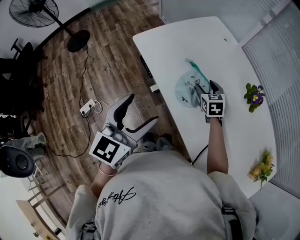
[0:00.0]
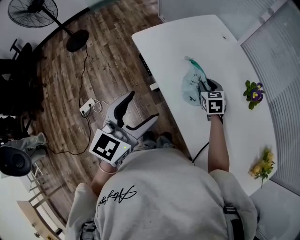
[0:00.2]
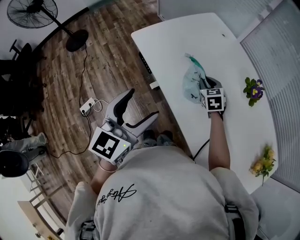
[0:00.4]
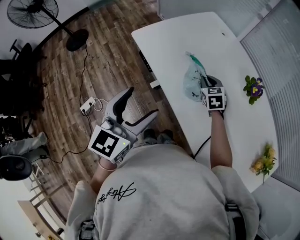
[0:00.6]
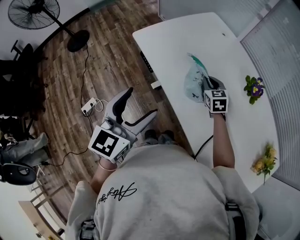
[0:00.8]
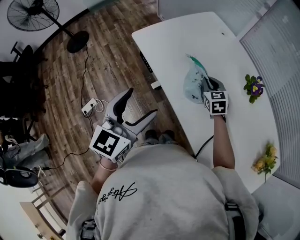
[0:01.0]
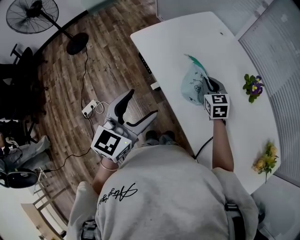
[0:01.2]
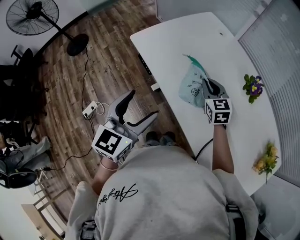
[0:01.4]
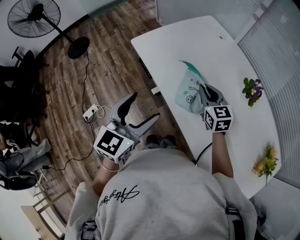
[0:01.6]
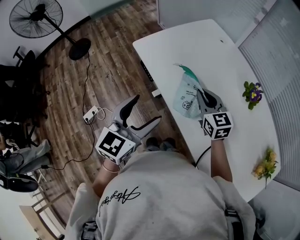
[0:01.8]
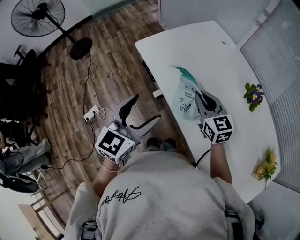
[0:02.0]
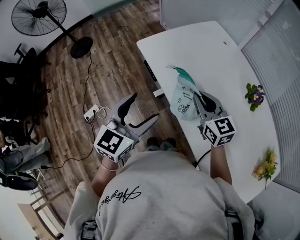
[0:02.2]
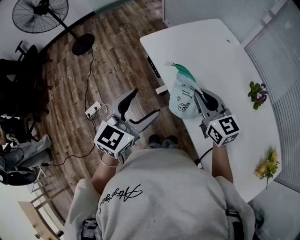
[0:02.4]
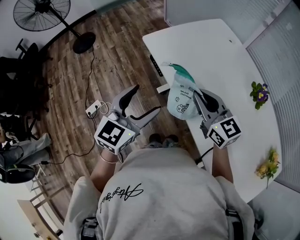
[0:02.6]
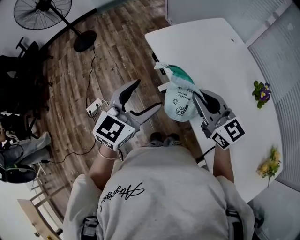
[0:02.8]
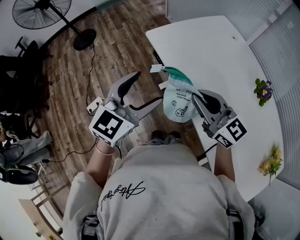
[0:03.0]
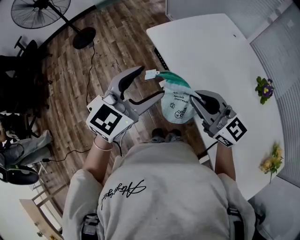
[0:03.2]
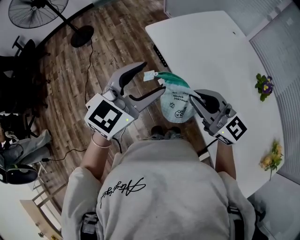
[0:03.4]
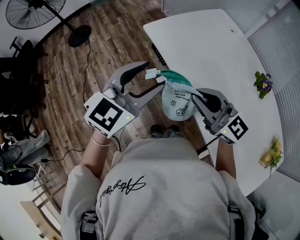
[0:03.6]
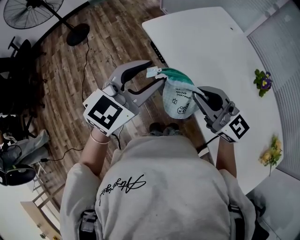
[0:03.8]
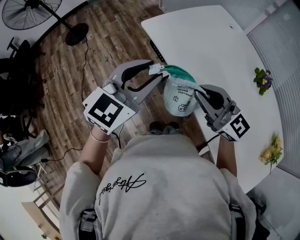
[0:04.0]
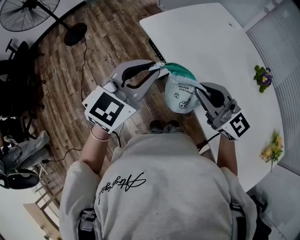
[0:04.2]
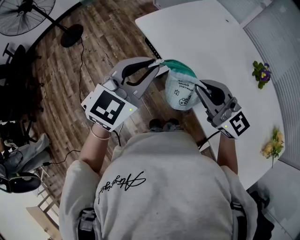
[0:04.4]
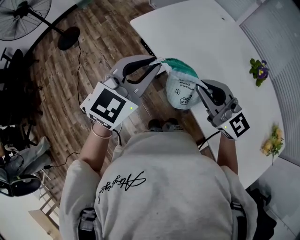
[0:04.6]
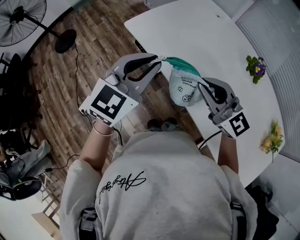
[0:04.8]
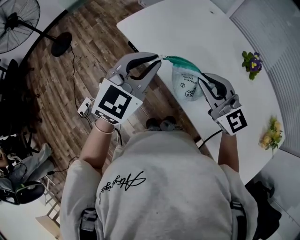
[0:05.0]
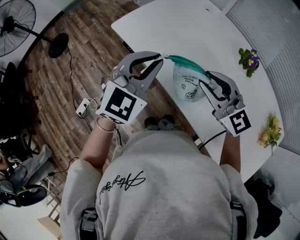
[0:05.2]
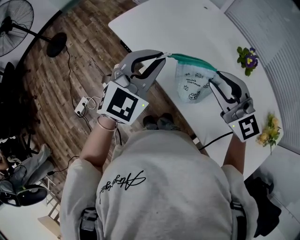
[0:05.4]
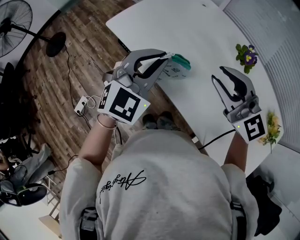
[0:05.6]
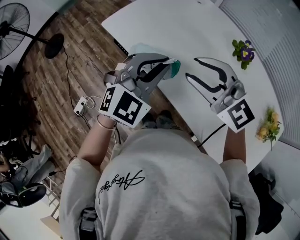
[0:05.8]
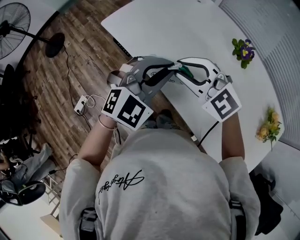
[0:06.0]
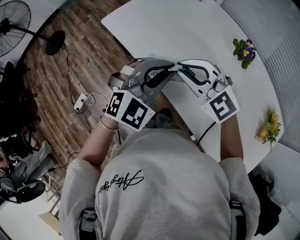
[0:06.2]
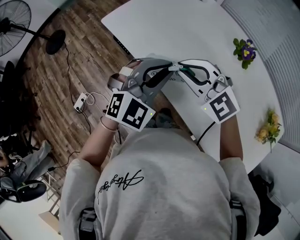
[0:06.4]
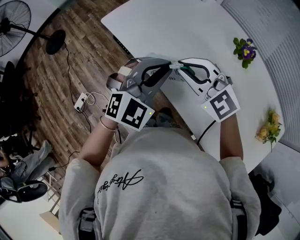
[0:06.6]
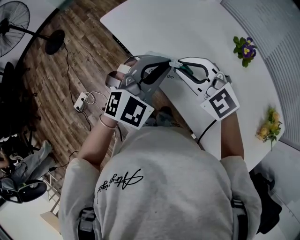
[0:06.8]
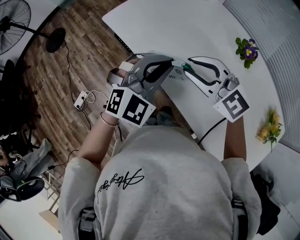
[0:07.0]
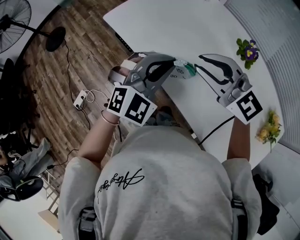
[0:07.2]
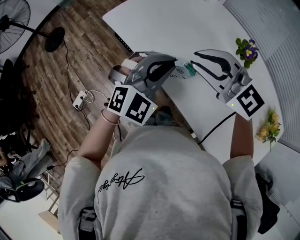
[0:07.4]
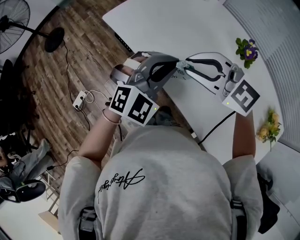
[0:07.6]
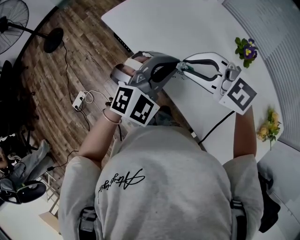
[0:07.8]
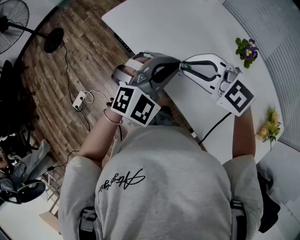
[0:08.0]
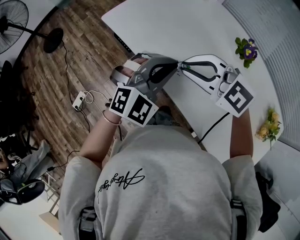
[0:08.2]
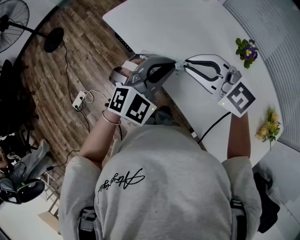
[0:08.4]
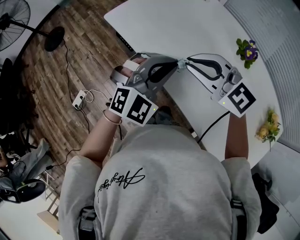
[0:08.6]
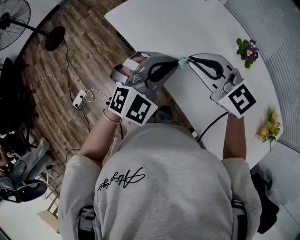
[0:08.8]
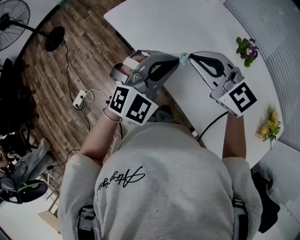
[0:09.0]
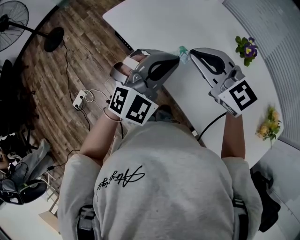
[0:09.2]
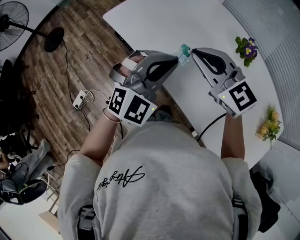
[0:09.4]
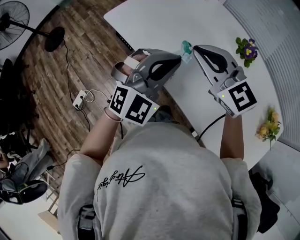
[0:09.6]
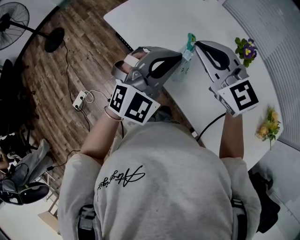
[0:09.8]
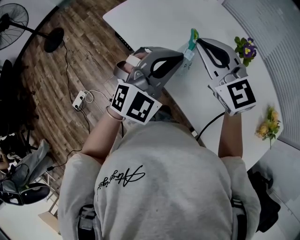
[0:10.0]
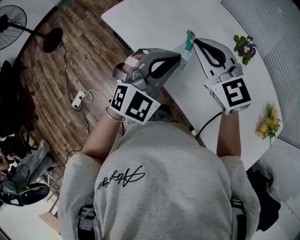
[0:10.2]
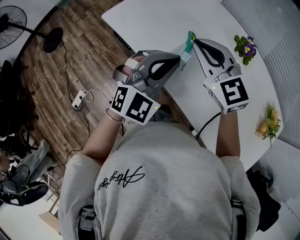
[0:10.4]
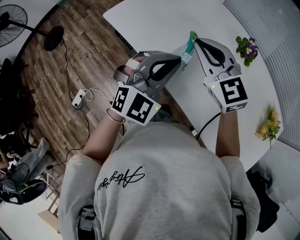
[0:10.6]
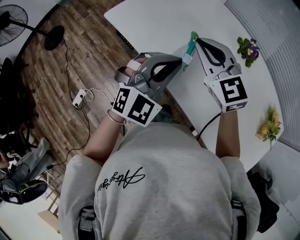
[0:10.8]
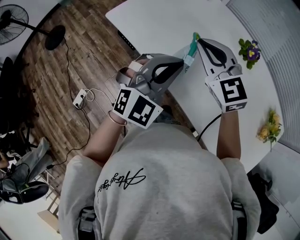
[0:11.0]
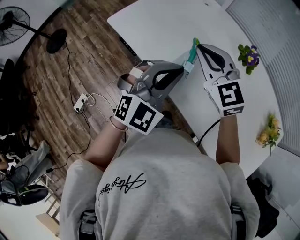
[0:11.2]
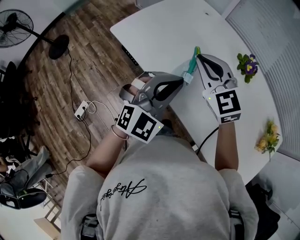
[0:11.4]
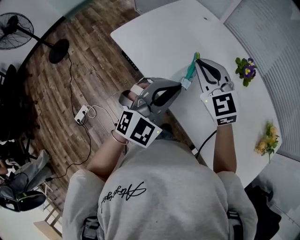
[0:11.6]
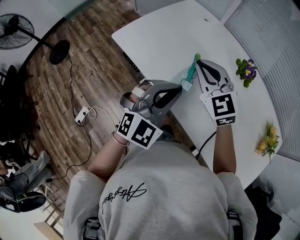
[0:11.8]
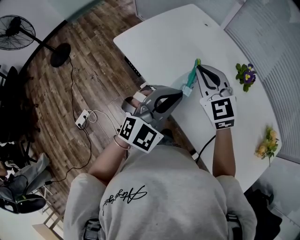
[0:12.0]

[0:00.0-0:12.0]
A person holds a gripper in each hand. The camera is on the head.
0.0 to 1.6 s: The right gripper heads upward and backward, covering roughly 10 cm, and closes up.
1.6 to 3.0 s: The right gripper shifts about 20 cm to the left, upward and backward, and turns by roughly 40 degrees. The left gripper moves to the left, roughly 5 cm.
3.0 to 4.4 s: The left gripper closes up.
4.4 to 6.0 s: The right gripper shifts some 5 cm to the right, and changes its angle by approximately 30 degrees, while the left gripper heads to the right, covering some 15 cm, and changes its angle by about 30 degrees.
6.0 to 9.0 s: The grippers make only small movements.
9.0 to 10.4 s: The right gripper rotates approximately 20 degrees.
10.4 to 12.0 s: The grippers make only small movements.

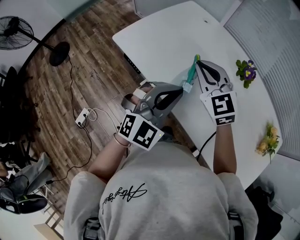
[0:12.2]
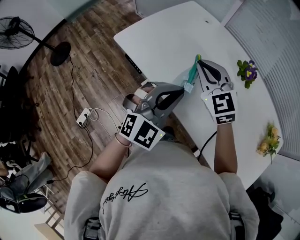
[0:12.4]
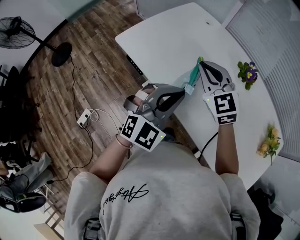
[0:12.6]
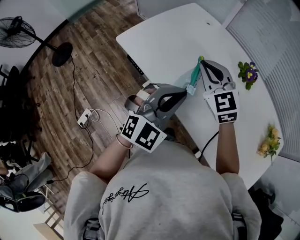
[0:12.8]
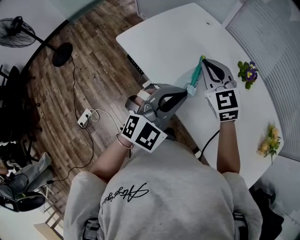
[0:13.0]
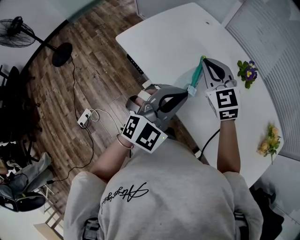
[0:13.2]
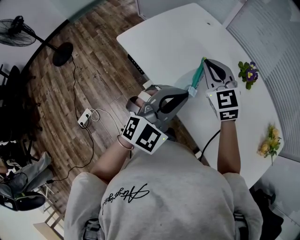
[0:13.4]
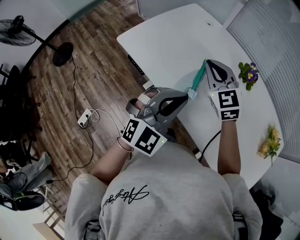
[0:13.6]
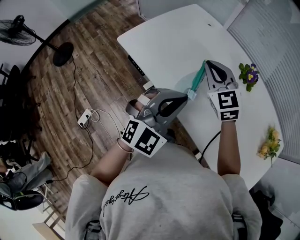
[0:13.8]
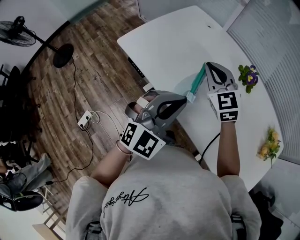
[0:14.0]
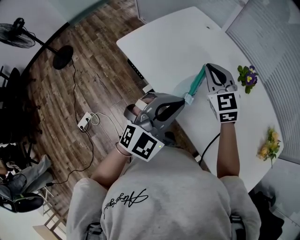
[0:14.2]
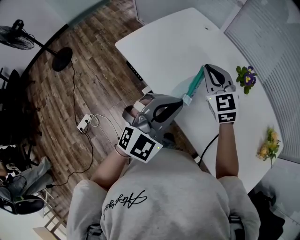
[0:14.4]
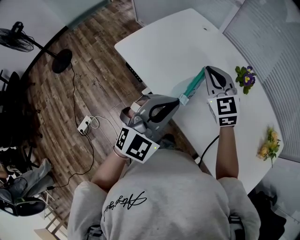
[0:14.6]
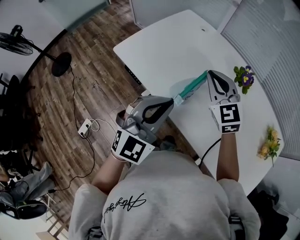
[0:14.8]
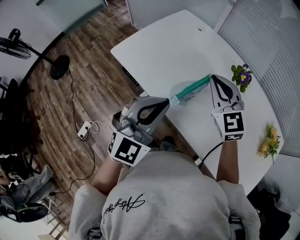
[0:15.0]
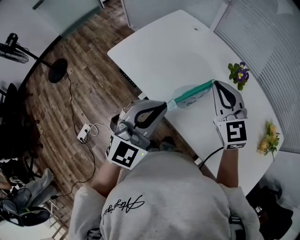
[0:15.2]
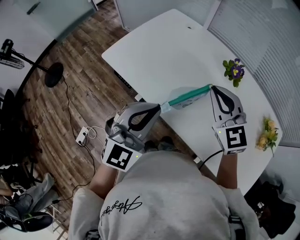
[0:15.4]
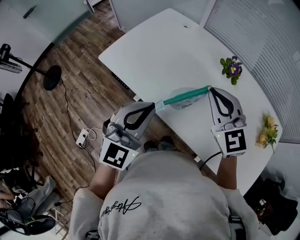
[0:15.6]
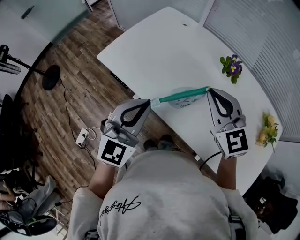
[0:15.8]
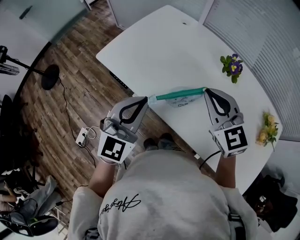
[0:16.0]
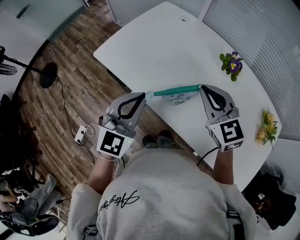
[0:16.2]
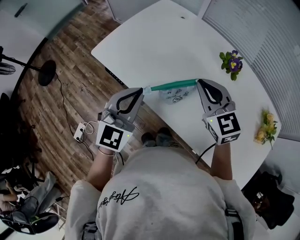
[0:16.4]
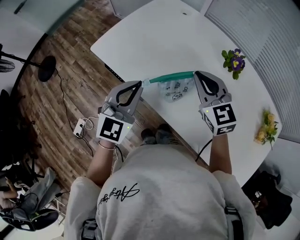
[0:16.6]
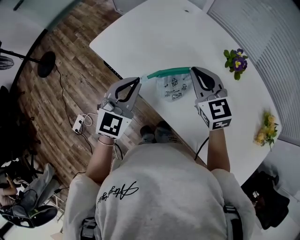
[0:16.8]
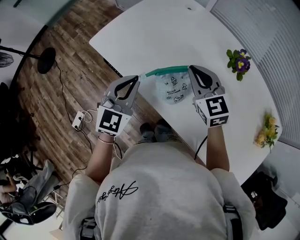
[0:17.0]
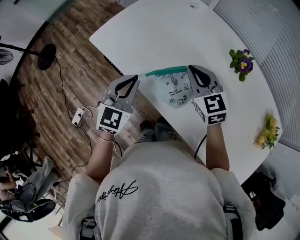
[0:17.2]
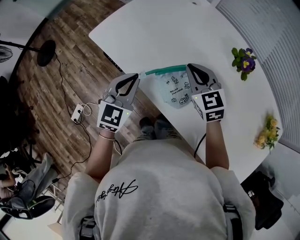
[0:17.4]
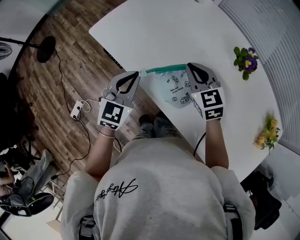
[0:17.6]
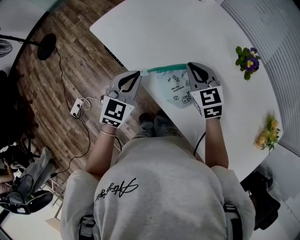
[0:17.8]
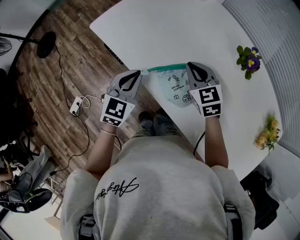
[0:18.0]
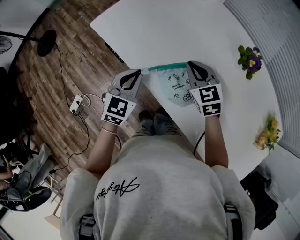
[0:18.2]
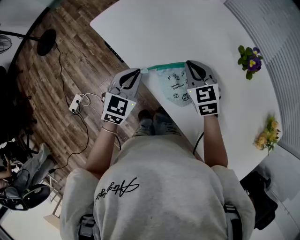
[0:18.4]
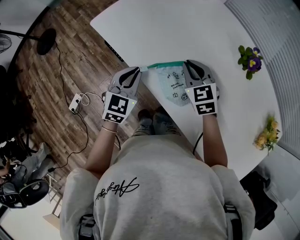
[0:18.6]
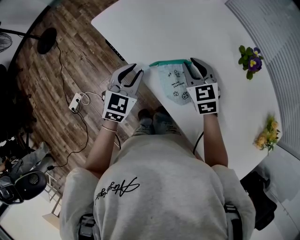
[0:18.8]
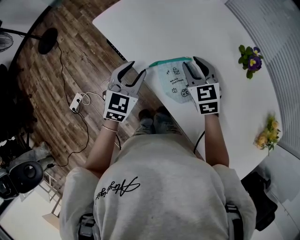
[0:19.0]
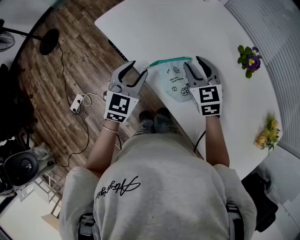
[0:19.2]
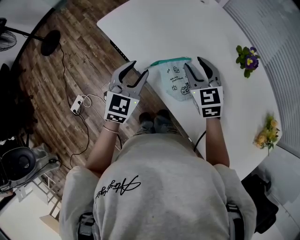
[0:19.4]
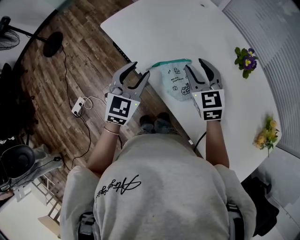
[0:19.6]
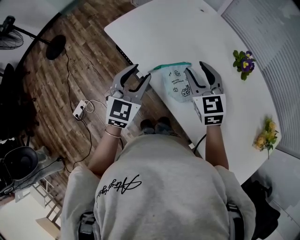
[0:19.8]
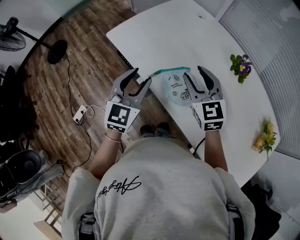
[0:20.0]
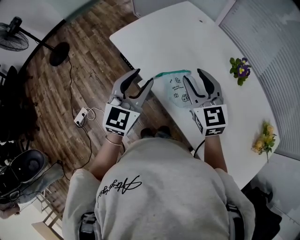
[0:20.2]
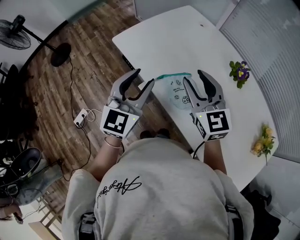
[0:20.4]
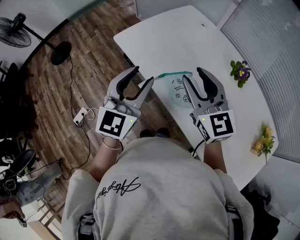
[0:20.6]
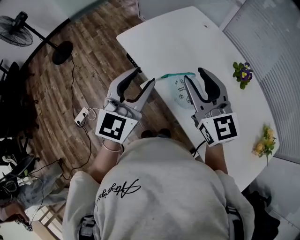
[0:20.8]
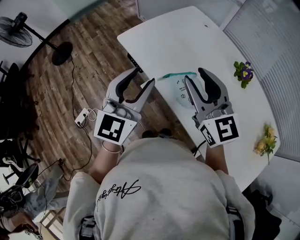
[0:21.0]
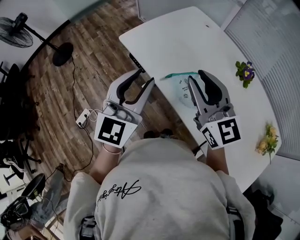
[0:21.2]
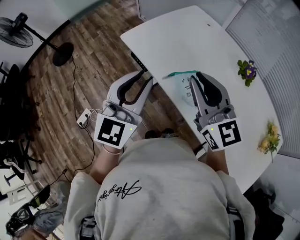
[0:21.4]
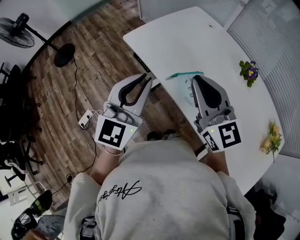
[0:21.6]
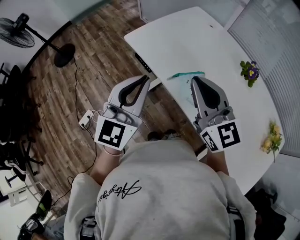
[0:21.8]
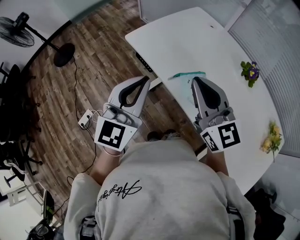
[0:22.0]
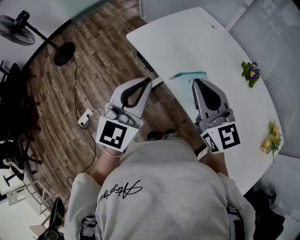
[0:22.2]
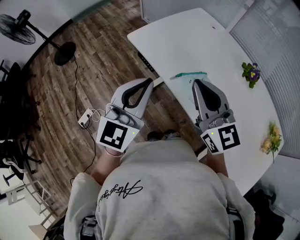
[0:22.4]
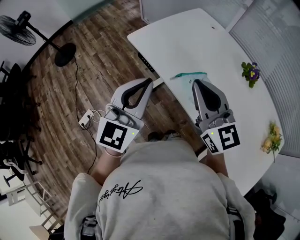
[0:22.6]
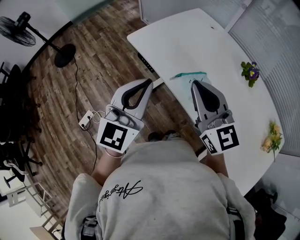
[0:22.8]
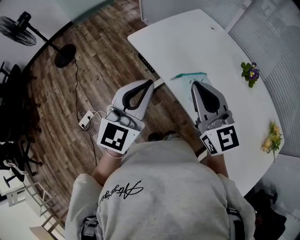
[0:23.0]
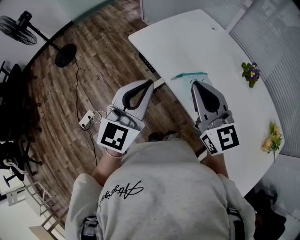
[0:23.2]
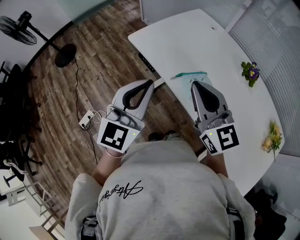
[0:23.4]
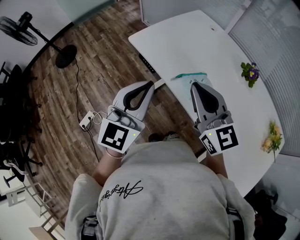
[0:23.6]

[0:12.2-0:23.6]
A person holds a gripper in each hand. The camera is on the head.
12.2 to 13.6 s: The grippers stay close to where they were, moving slightly.
13.6 to 15.0 s: The right gripper ends up approximately 5 cm from where it was.
15.0 to 16.4 s: The left gripper moves downward, about 5 cm.
16.4 to 17.8 s: The left gripper moves downward, roughly 10 cm, and swivels approximately 20 degrees. The right gripper heads downward and forward, covering roughly 15 cm.
17.8 to 19.4 s: The right gripper opens. The left gripper opens.
19.4 to 20.8 s: The left gripper is displaced upward by roughly 15 cm, and changes its angle by about 20 degrees. The right gripper goes roughly 20 cm upward and backward, and turns by about 30 degrees.
20.8 to 22.2 s: The left gripper shifts by roughly 5 cm, and closes up. Meanwhile the right gripper ends up roughly 5 cm from where it was, and closes up.
22.2 to 23.6 s: There are only small adjustments of the grippers.

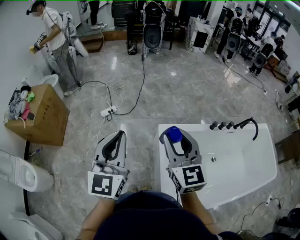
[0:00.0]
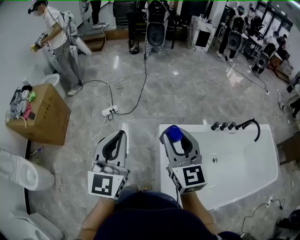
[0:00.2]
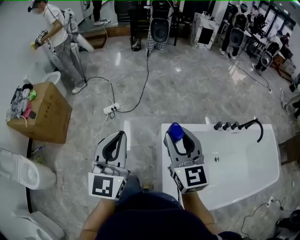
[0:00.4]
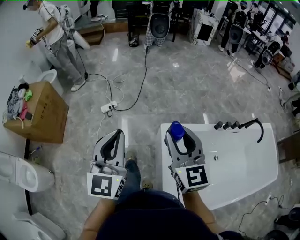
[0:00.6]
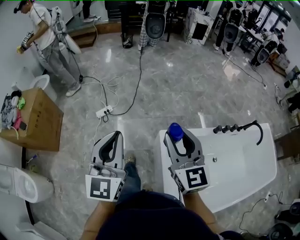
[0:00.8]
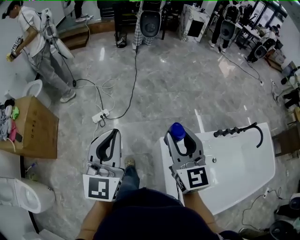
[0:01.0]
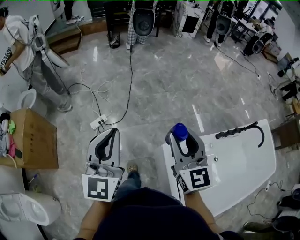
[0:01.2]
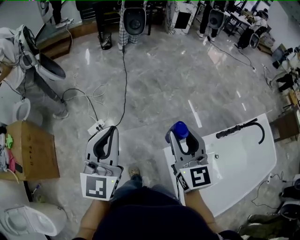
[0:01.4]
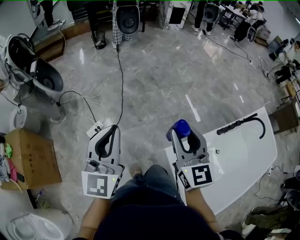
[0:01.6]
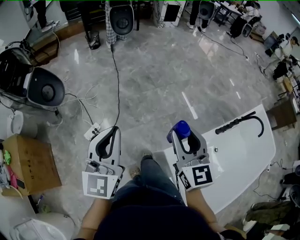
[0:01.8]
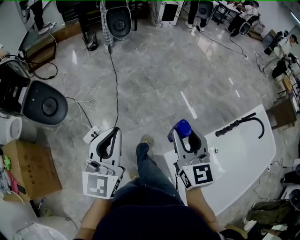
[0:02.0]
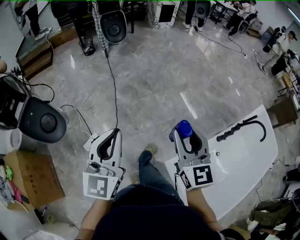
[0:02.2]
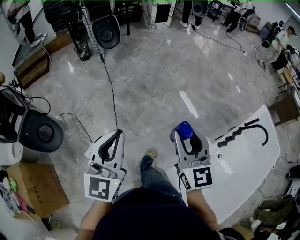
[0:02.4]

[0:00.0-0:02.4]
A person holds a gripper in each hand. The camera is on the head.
0.0 to 1.2 s: The two grippers go roughly 30 cm forward.
1.2 to 2.4 s: The two grippers go some 30 cm forward.
